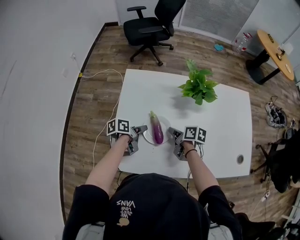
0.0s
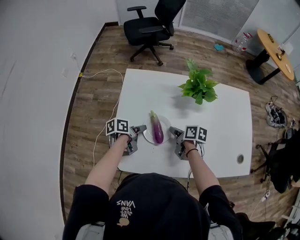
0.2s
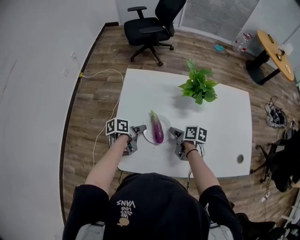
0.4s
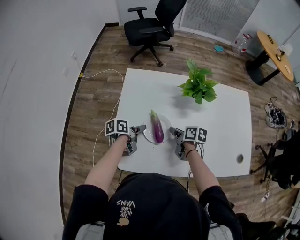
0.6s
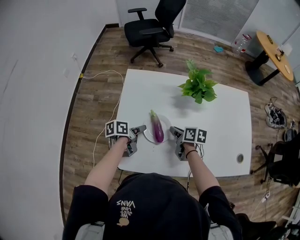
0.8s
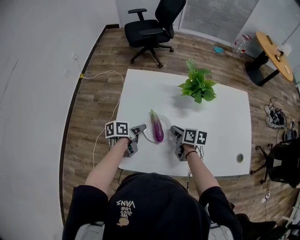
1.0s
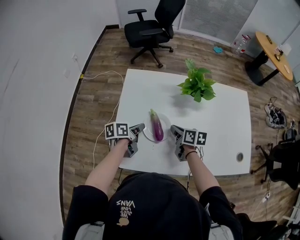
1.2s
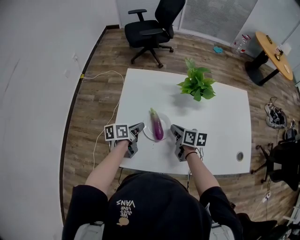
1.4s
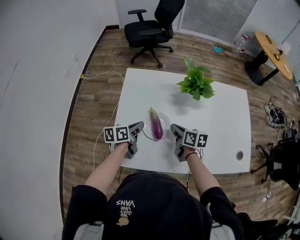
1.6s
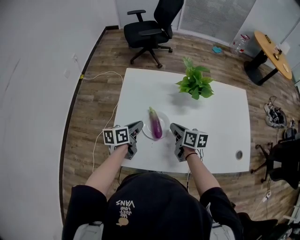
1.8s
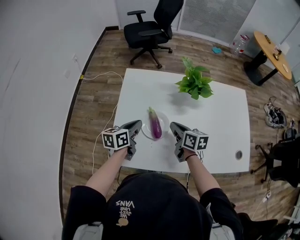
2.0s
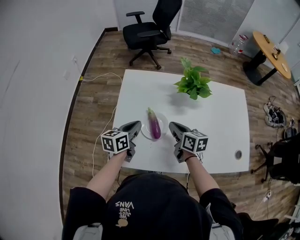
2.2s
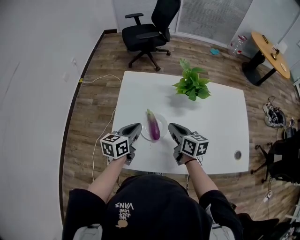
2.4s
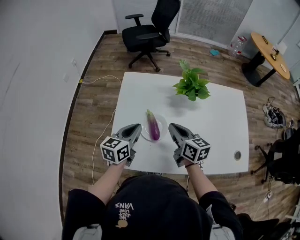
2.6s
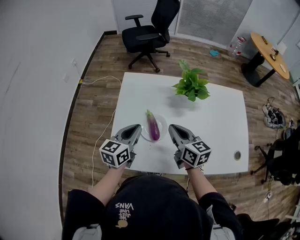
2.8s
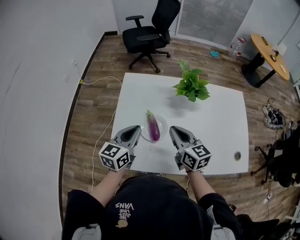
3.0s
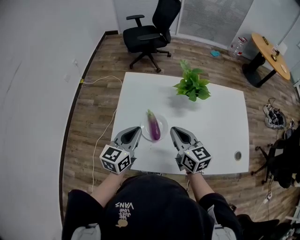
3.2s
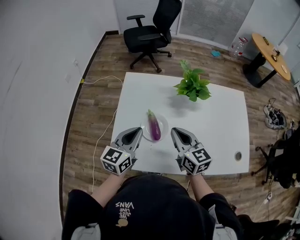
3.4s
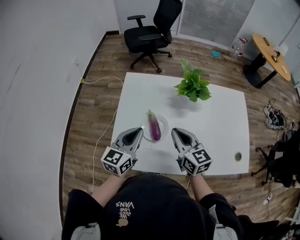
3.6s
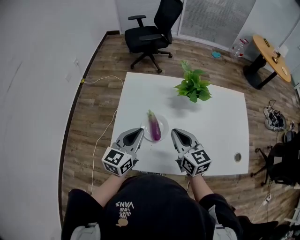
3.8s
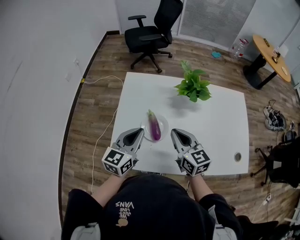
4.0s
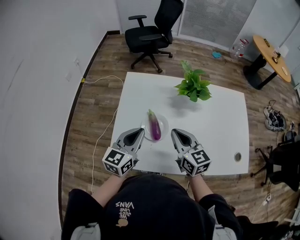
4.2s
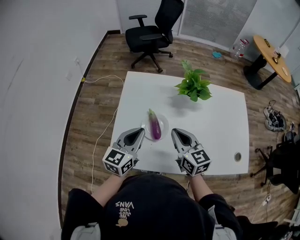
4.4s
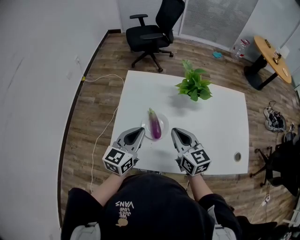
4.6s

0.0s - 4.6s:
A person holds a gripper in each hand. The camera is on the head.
0.0s - 1.6s: Both grippers move upward, approximately 5 cm. The left gripper rotates some 20 degrees, and closes.
1.6s - 3.0s: Both grippers move upward, some 10 cm. The left gripper rotates roughly 40 degrees. Meanwhile the right gripper turns by roughly 30 degrees.
3.0s - 4.6s: The grippers make only small movements.

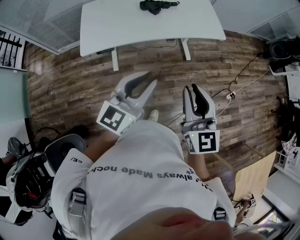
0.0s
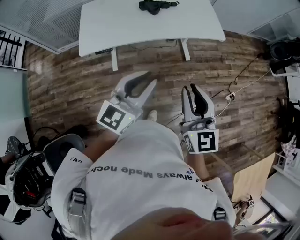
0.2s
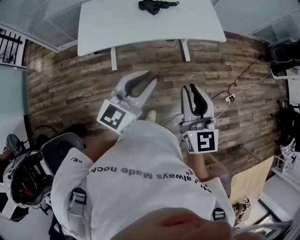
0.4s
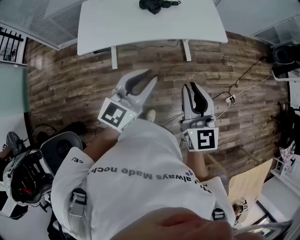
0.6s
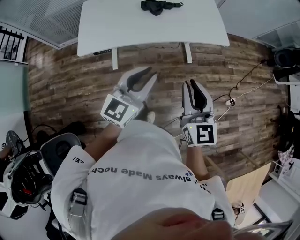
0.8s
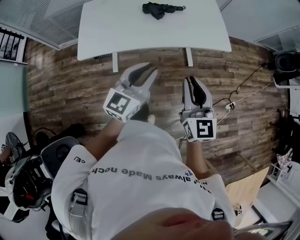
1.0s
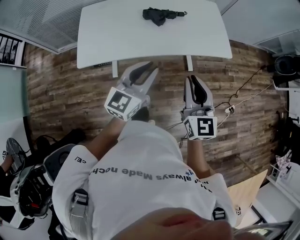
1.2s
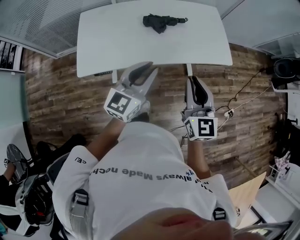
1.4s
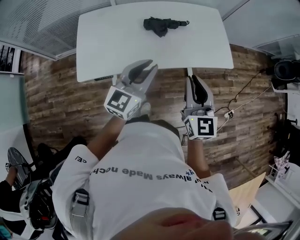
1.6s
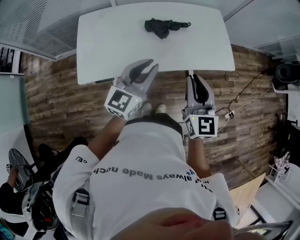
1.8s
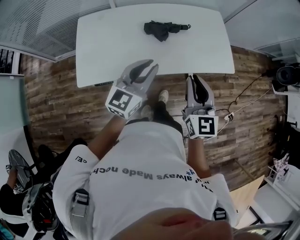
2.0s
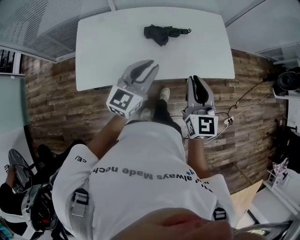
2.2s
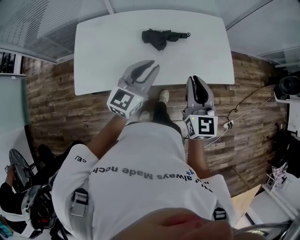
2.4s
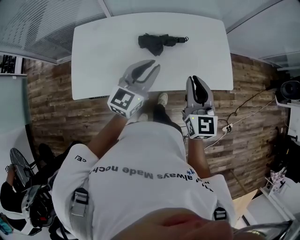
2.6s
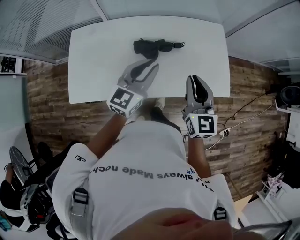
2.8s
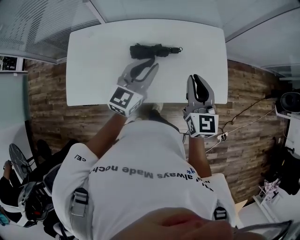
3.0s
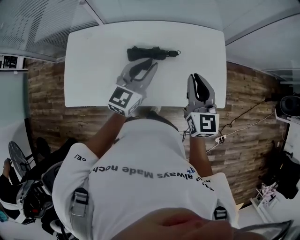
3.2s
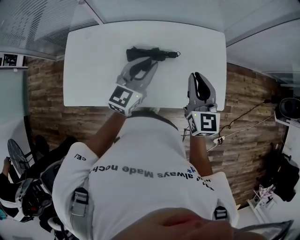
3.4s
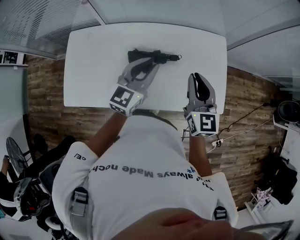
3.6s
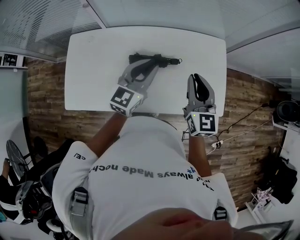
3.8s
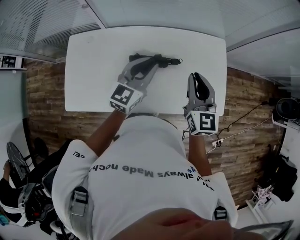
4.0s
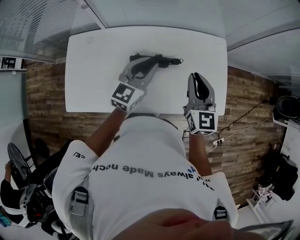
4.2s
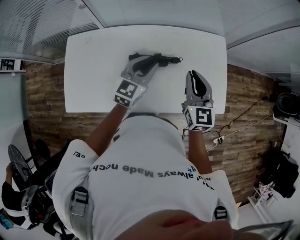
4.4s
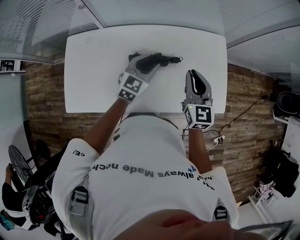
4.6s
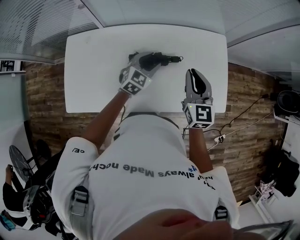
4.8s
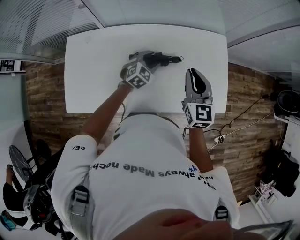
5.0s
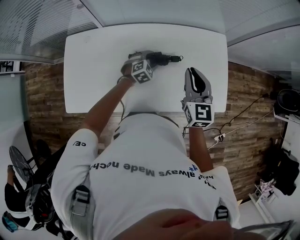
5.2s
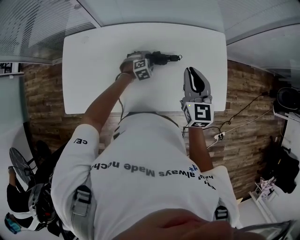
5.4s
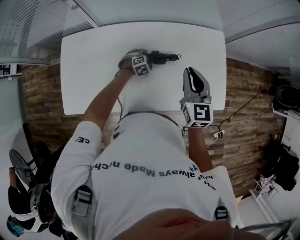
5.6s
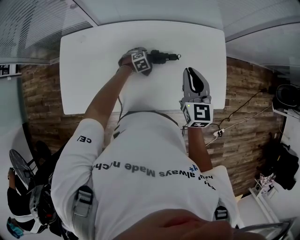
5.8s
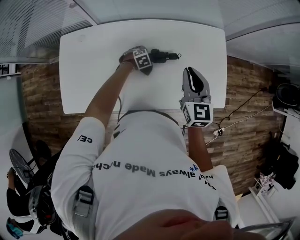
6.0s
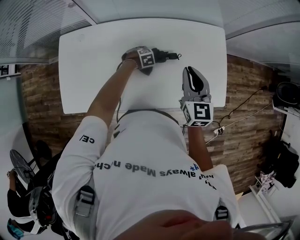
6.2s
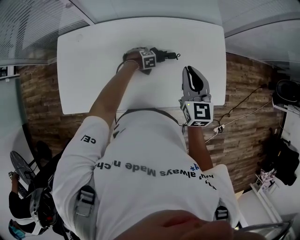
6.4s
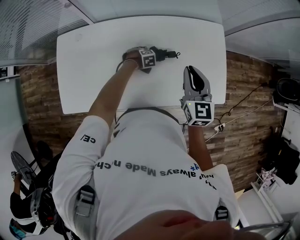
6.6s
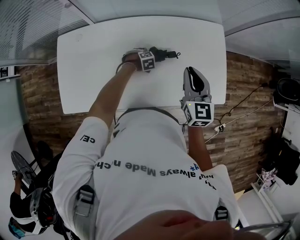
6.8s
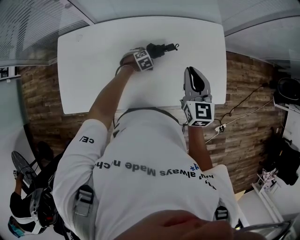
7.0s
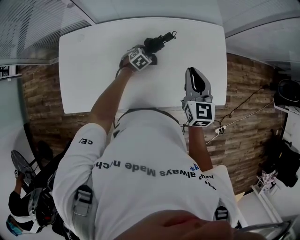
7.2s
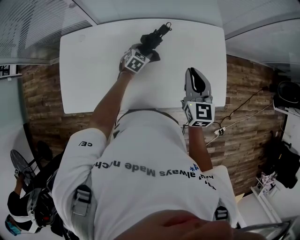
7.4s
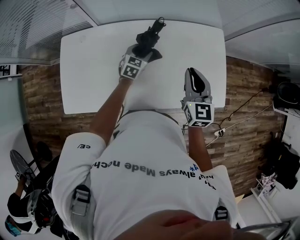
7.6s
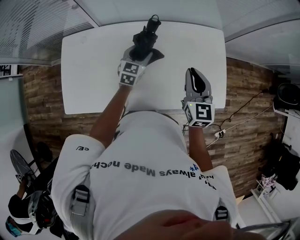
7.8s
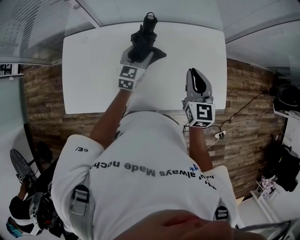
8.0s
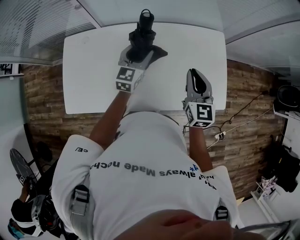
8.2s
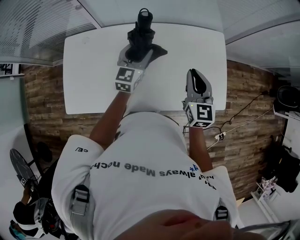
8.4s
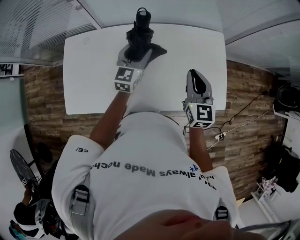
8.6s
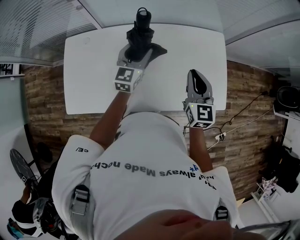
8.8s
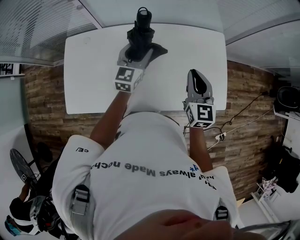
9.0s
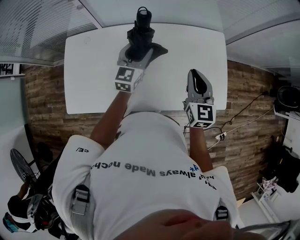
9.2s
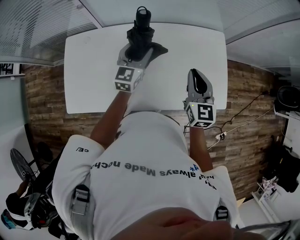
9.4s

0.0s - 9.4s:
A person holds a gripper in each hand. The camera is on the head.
0.0s - 1.6s: The two grippers go some 35 cm forward.
1.6s - 3.2s: The two grippers travel together, forward, approximately 40 cm.
3.2s - 4.8s: The right gripper shifts approximately 10 cm forward. Meanwhile the left gripper goes approximately 15 cm downward and forward, turns by roughly 30 degrees, and opens its fingers.
4.8s - 6.2s: The left gripper travels downward by about 25 cm, tilts its fingers roughly 50 degrees downward, and opens up.
6.2s - 7.8s: The left gripper is displaced upward by approximately 25 cm, and tips its fingers upward by some 50 degrees.
7.8s - 9.4s: The left gripper is displaced upward by approximately 10 cm.

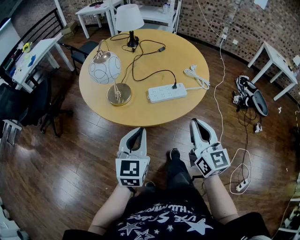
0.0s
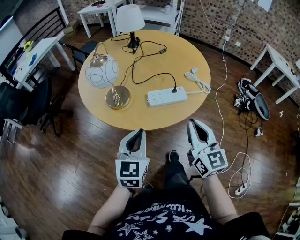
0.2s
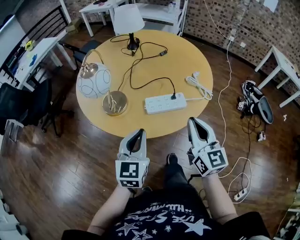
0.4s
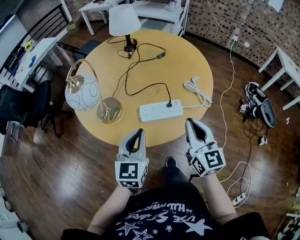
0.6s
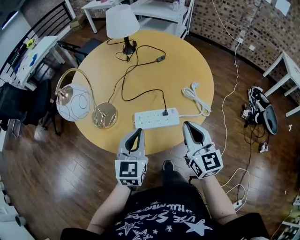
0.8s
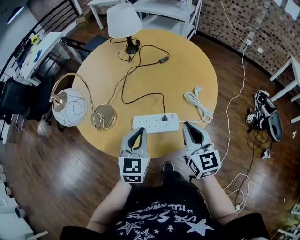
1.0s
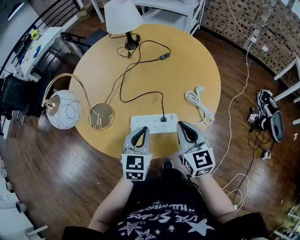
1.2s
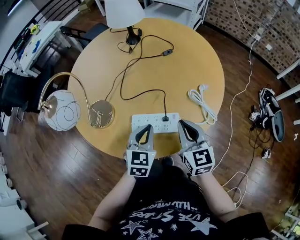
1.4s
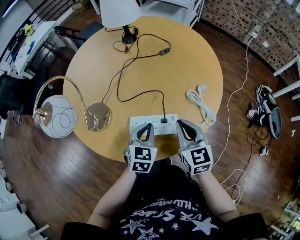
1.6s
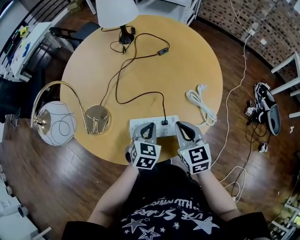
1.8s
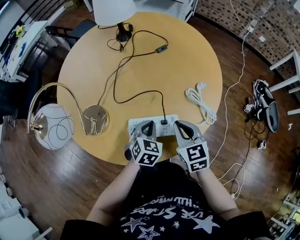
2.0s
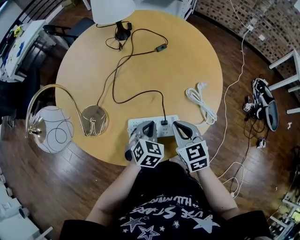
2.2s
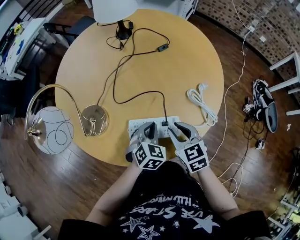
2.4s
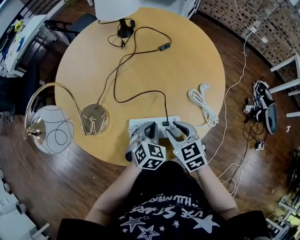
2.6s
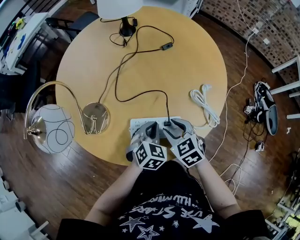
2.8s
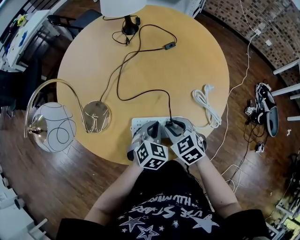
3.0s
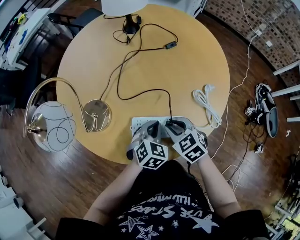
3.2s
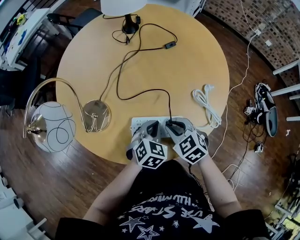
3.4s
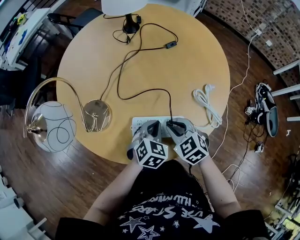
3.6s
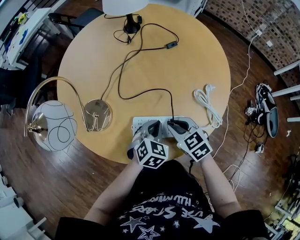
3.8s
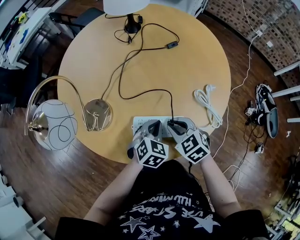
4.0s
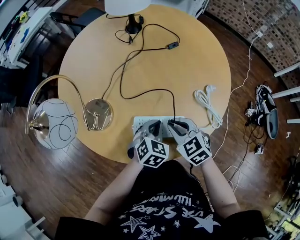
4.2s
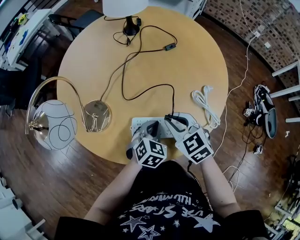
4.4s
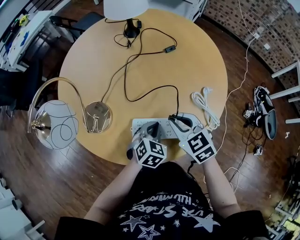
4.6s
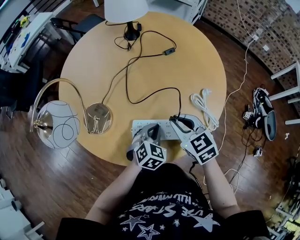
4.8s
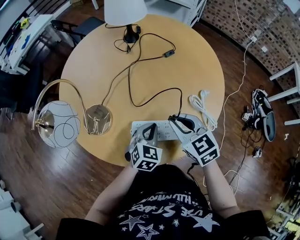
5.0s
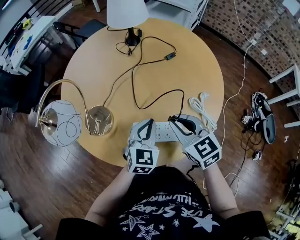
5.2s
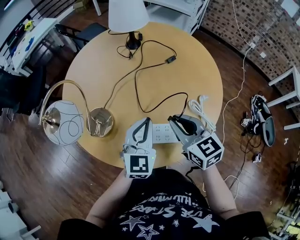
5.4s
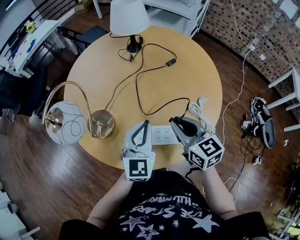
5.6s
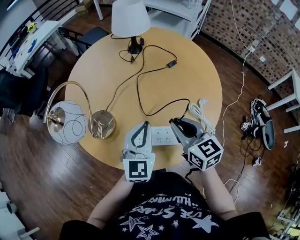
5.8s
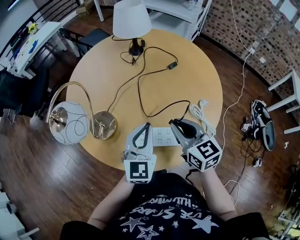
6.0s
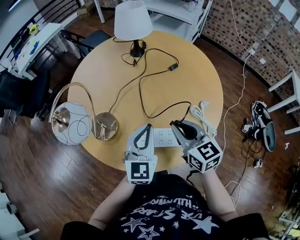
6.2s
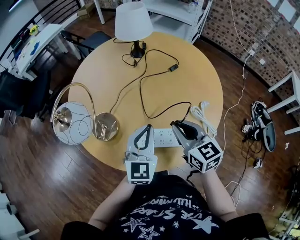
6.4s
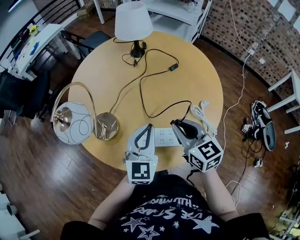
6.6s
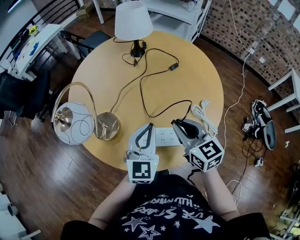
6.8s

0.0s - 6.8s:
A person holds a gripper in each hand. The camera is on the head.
0.0s - 1.4s: The right gripper moves forward and downward, roughly 25 cm, and rotates some 20 degrees; the left gripper moves forward, to the right and downward, about 25 cm.
1.4s - 2.8s: The left gripper goes approximately 10 cm downward, and swivels approximately 20 degrees, while the right gripper shifts about 10 cm downward and to the left, changes its angle by roughly 40 degrees, and opens.
2.8s - 4.0s: The right gripper closes.
4.0s - 5.4s: Both grippers travel together upward, some 15 cm. The right gripper rotates roughly 30 degrees. The left gripper points its fingers about 40 degrees further upward.
5.4s - 6.8s: The grippers make only small movements.

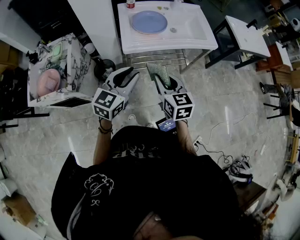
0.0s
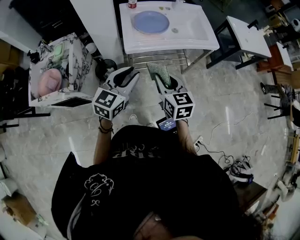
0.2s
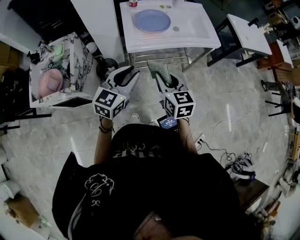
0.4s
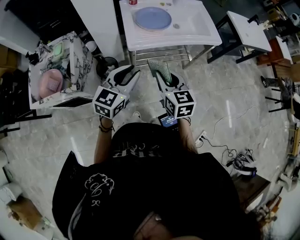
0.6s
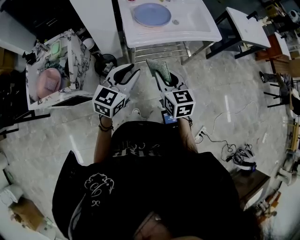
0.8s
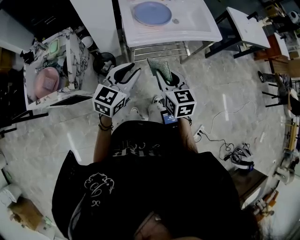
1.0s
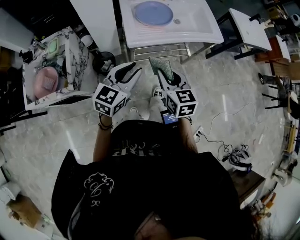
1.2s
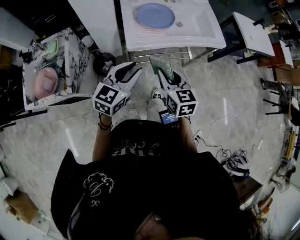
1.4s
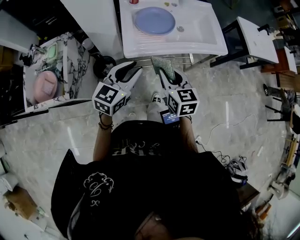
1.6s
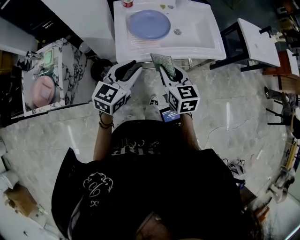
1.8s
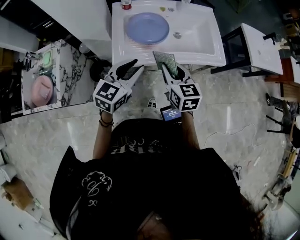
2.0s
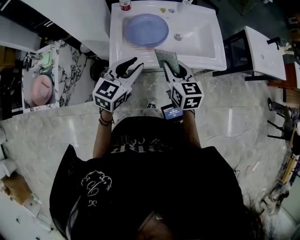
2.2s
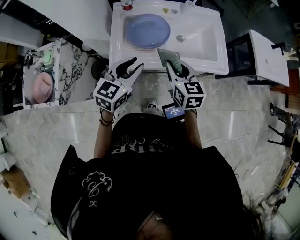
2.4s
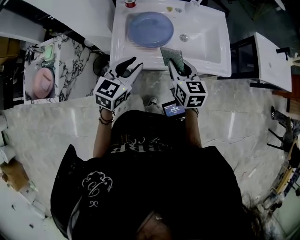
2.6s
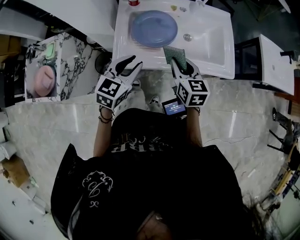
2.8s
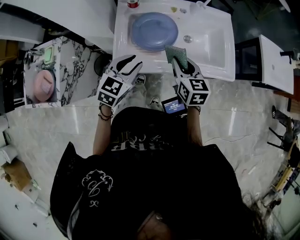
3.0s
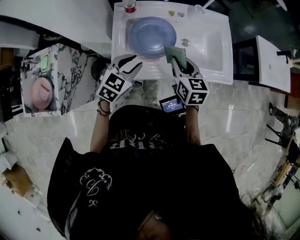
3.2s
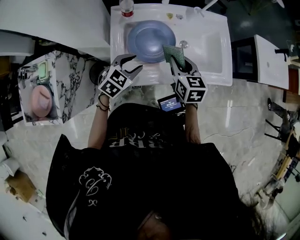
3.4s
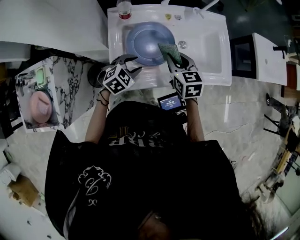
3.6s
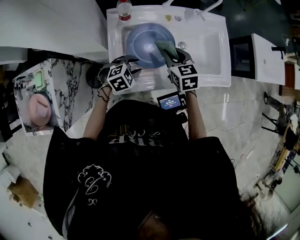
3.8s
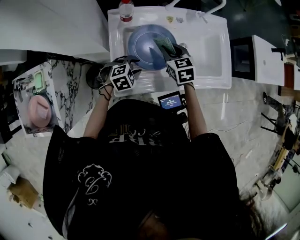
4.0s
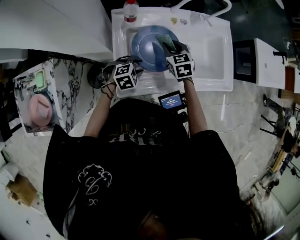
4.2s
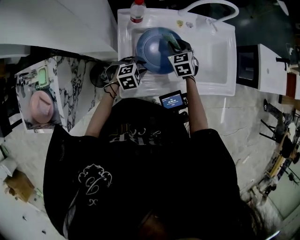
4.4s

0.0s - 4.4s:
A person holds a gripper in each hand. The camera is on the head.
0.0s - 1.4s: Both grippers move forward, roughly 5 cm.
1.4s - 3.0s: The left gripper travels forward by approximately 25 cm, while the right gripper travels forward and to the right by roughly 30 cm.
3.0s - 4.4s: The right gripper heads forward, to the left and downward, covering roughly 25 cm, and swivels roughly 30 degrees; the left gripper moves downward and forward, some 20 cm, and swivels approximately 50 degrees.
